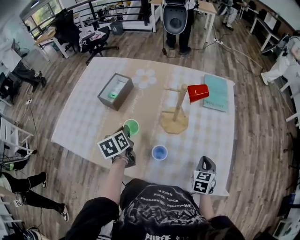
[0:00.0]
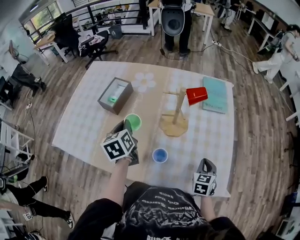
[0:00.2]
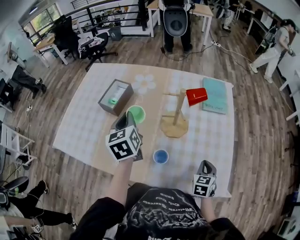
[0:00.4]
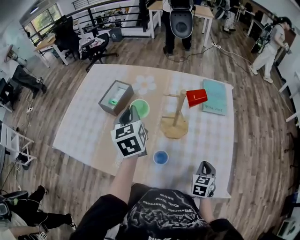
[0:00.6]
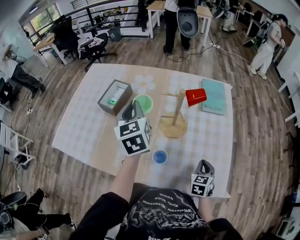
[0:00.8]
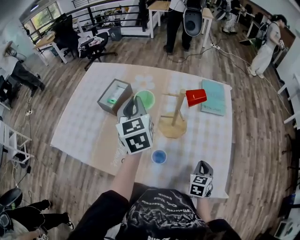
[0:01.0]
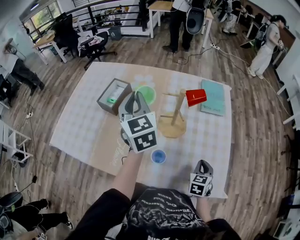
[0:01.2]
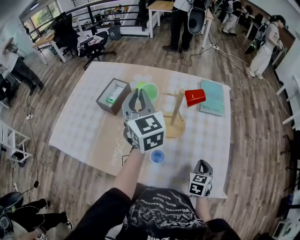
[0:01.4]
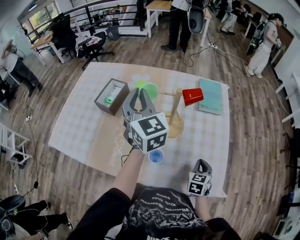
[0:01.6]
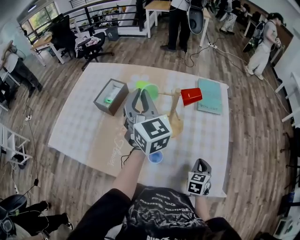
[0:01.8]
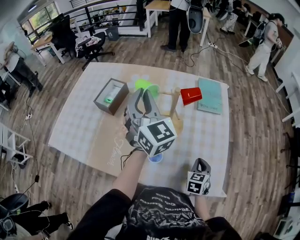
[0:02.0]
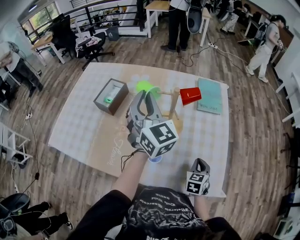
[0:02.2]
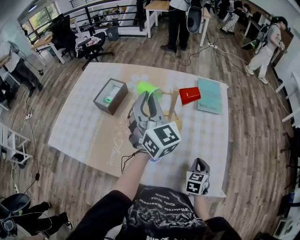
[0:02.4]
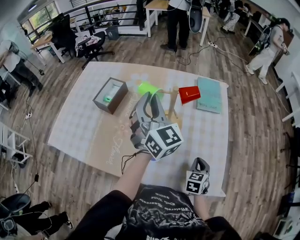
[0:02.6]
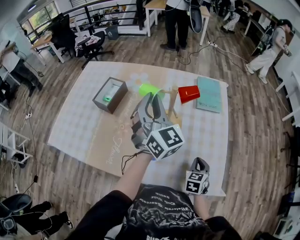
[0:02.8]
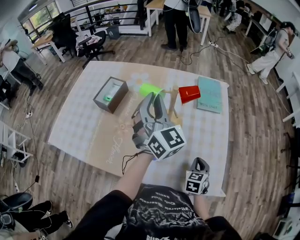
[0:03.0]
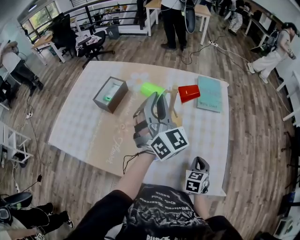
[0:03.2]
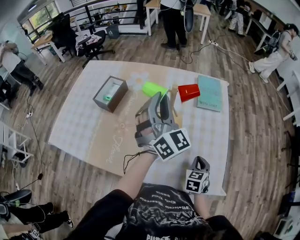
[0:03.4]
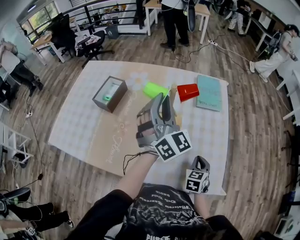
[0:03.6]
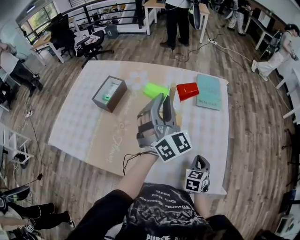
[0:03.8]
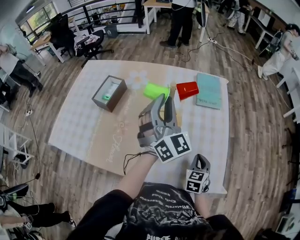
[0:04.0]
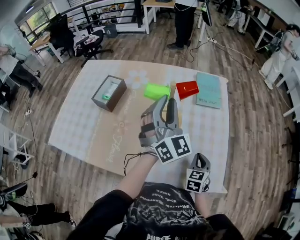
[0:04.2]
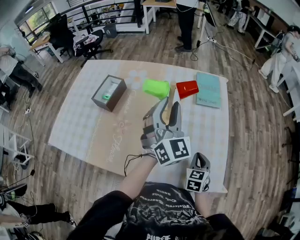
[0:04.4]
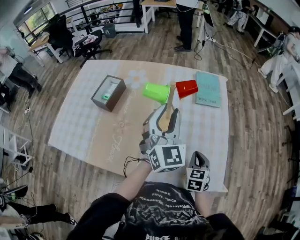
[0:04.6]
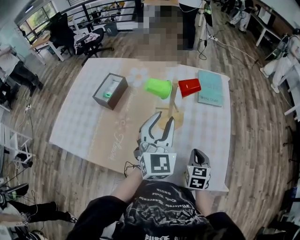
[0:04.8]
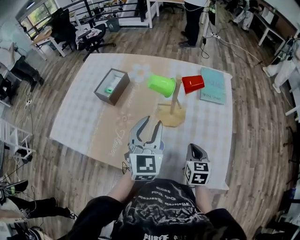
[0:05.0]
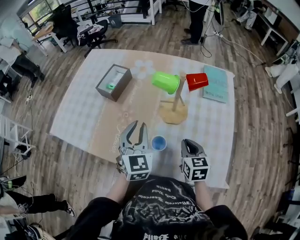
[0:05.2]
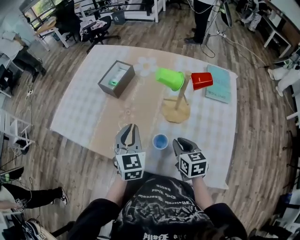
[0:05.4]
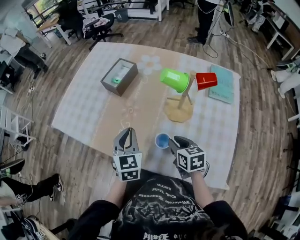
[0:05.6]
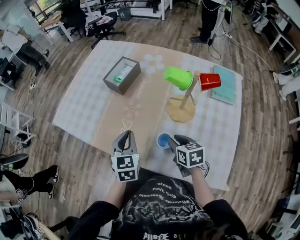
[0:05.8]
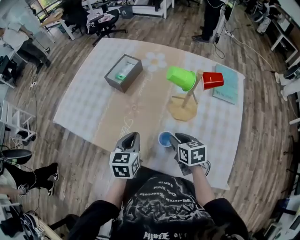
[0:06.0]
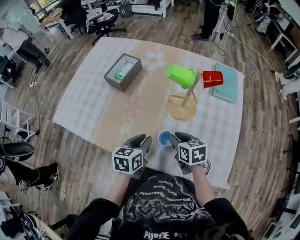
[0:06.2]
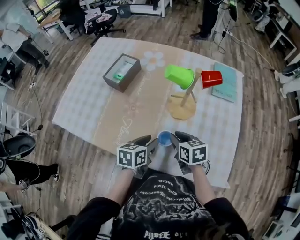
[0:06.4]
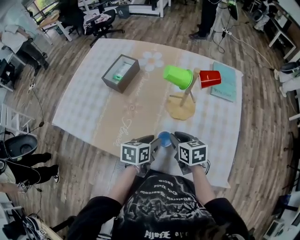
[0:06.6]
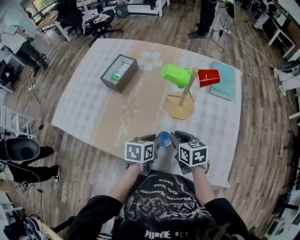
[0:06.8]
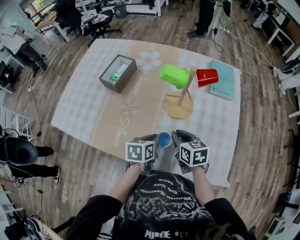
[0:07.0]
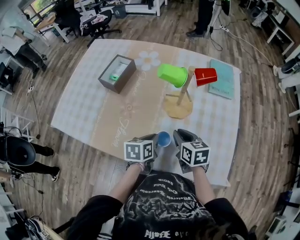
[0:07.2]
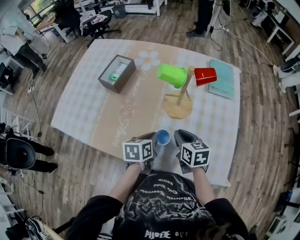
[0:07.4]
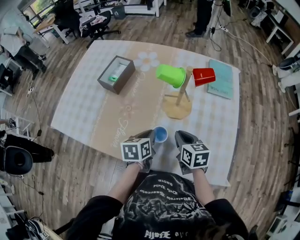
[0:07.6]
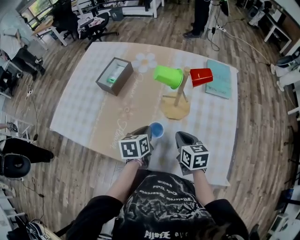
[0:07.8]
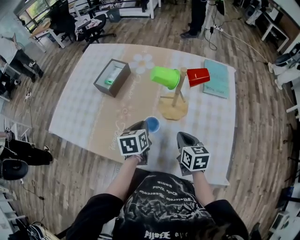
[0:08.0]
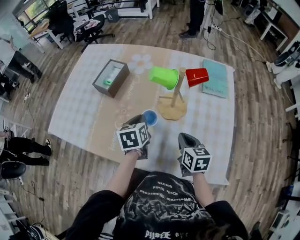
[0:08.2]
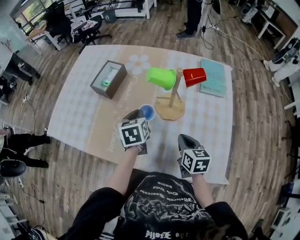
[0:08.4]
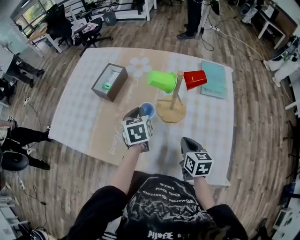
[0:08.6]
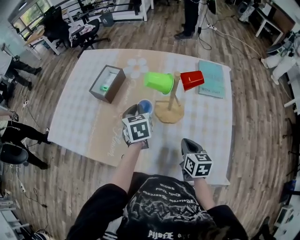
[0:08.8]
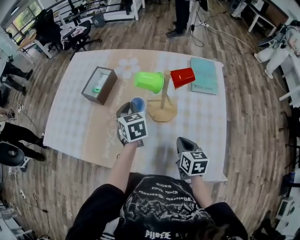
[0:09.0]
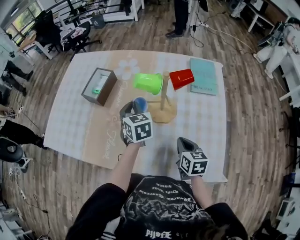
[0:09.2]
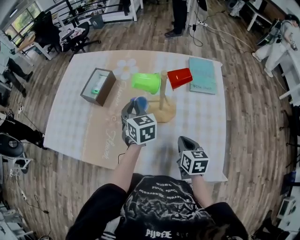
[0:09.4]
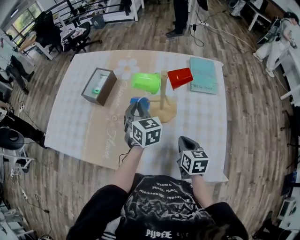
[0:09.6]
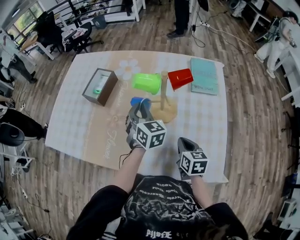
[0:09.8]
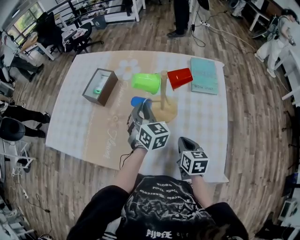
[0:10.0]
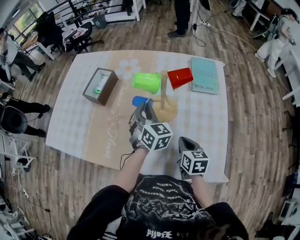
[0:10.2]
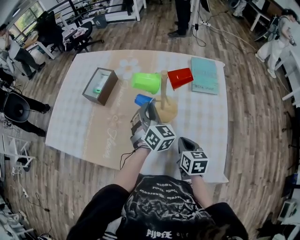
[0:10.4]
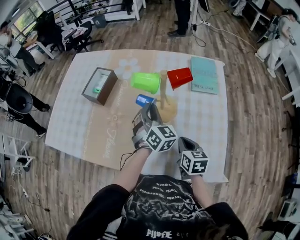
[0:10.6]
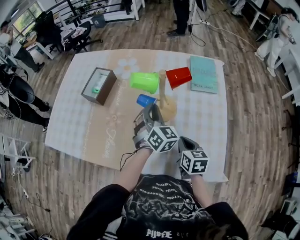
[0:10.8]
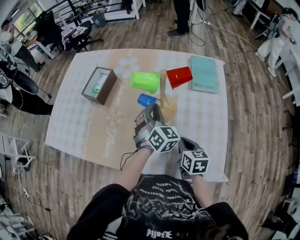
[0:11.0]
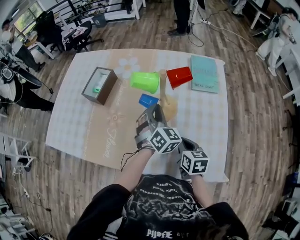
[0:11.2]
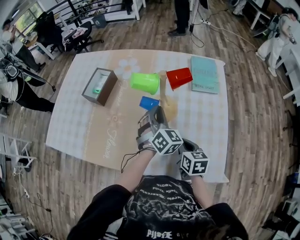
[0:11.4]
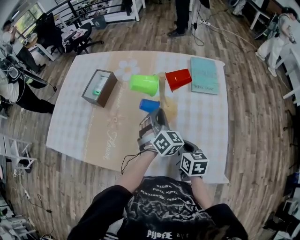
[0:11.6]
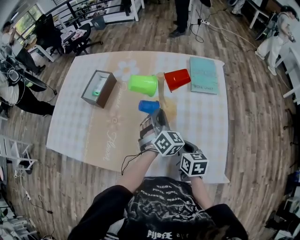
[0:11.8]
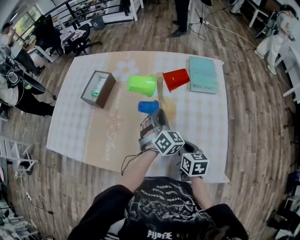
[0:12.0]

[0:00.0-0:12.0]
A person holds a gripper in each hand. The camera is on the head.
0:00.0 to 0:01.6: The left gripper travels upward and to the right by approximately 25 cm, and points its fingers approximately 30 degrees further upward.
0:01.6 to 0:03.0: The left gripper shifts approximately 5 cm to the right.
0:03.0 to 0:04.4: The left gripper shifts roughly 5 cm to the right, and opens up.
0:04.4 to 0:06.0: The left gripper changes place by approximately 30 cm, tilts its fingers roughly 30 degrees downward, and closes its fingers. Meanwhile the right gripper changes place by about 20 cm, turns by some 40 degrees, and opens.
0:06.0 to 0:07.6: The left gripper shifts approximately 10 cm to the right, changes its angle by some 20 degrees, and opens, then closes again.
0:07.6 to 0:09.0: The left gripper goes about 15 cm forward and upward, and rotates roughly 40 degrees. The right gripper heads to the right, covering about 5 cm.
0:09.0 to 0:10.4: The left gripper is displaced to the right by about 10 cm, and turns by some 30 degrees.
0:10.4 to 0:12.0: The left gripper travels to the right by about 5 cm.

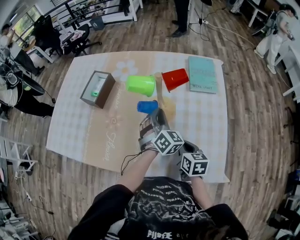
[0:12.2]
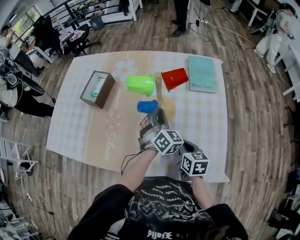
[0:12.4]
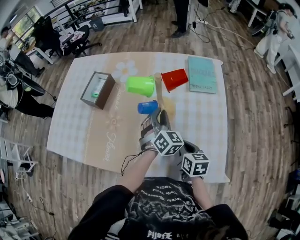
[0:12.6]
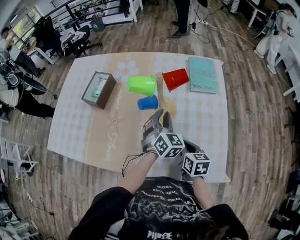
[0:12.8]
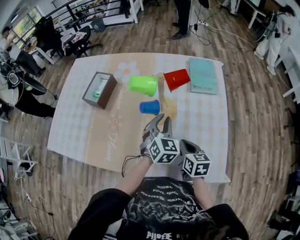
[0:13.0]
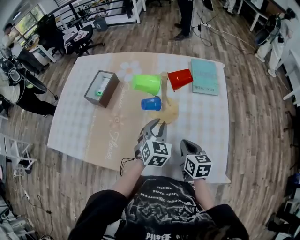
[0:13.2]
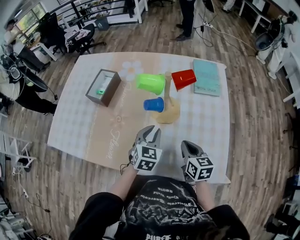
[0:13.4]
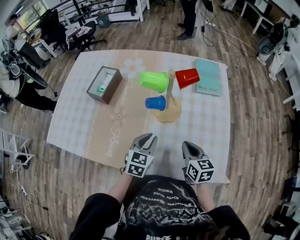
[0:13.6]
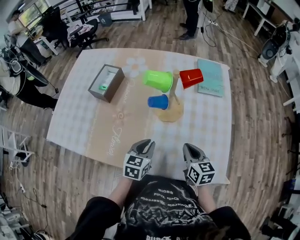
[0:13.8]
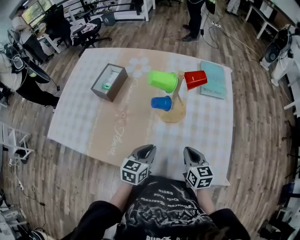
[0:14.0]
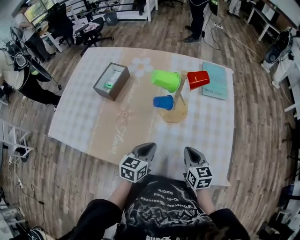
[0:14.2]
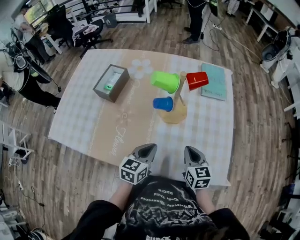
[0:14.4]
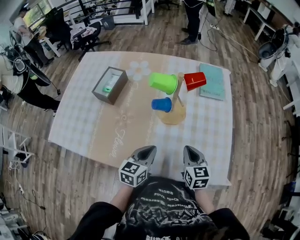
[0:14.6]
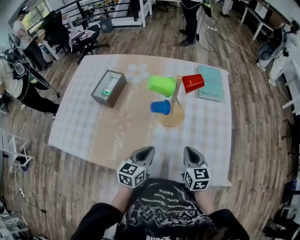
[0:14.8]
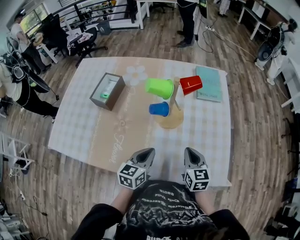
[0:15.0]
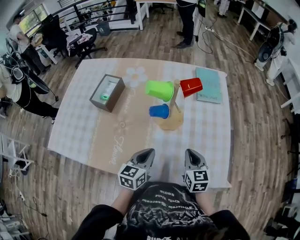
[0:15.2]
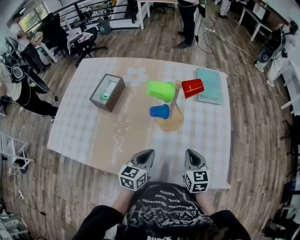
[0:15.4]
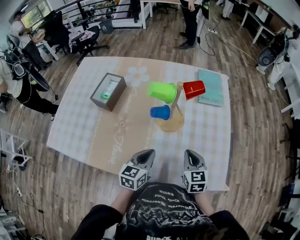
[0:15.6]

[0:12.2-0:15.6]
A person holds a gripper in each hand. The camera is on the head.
0:12.2 to 0:13.8: The left gripper shifts some 20 cm backward and to the left, and swivels some 50 degrees.
0:13.8 to 0:15.6: The grippers stay close to where they were, moving slightly.

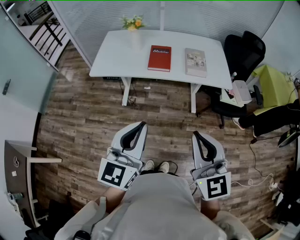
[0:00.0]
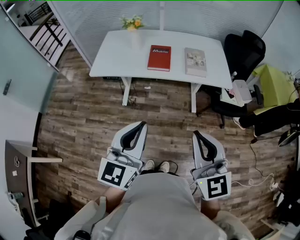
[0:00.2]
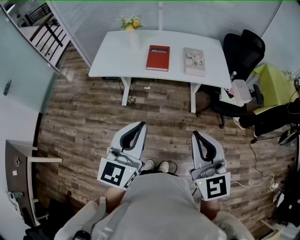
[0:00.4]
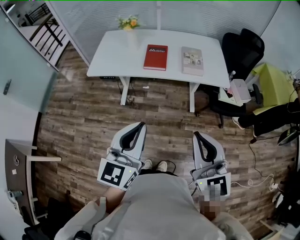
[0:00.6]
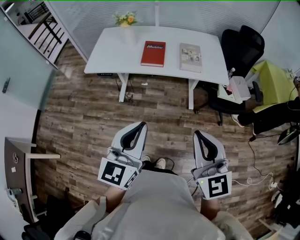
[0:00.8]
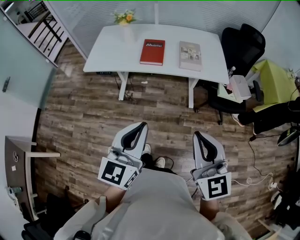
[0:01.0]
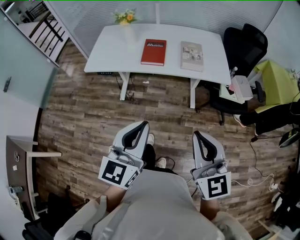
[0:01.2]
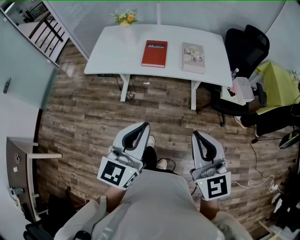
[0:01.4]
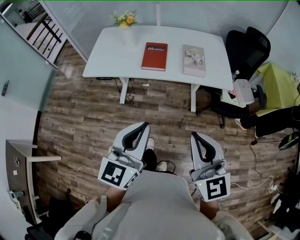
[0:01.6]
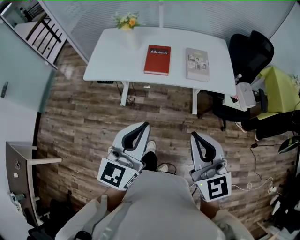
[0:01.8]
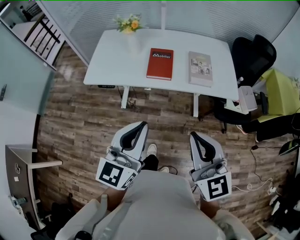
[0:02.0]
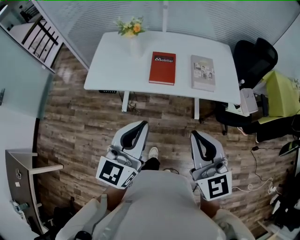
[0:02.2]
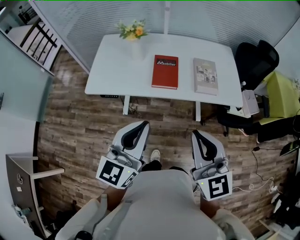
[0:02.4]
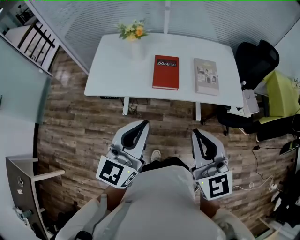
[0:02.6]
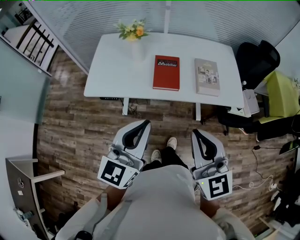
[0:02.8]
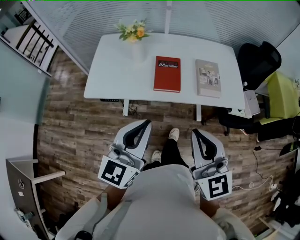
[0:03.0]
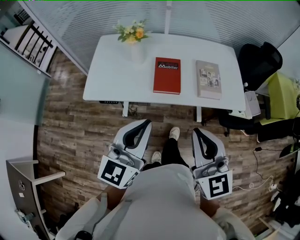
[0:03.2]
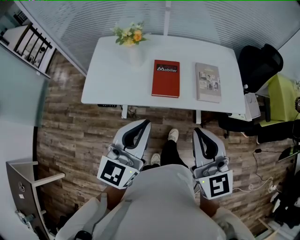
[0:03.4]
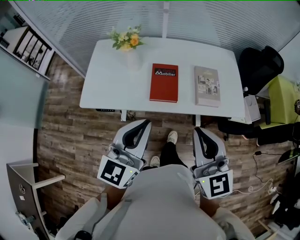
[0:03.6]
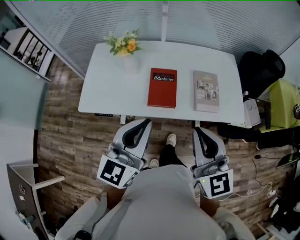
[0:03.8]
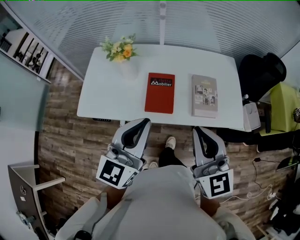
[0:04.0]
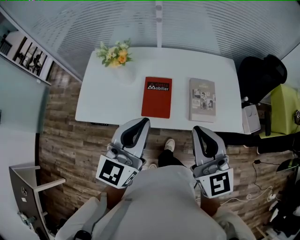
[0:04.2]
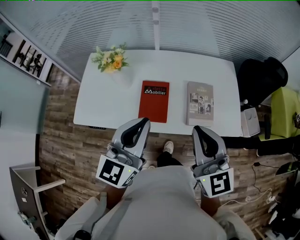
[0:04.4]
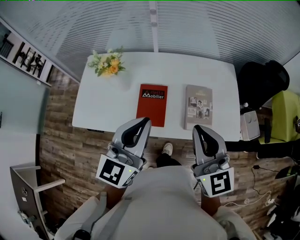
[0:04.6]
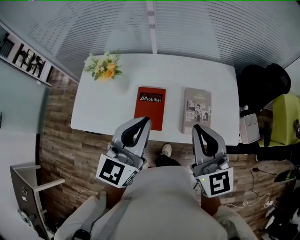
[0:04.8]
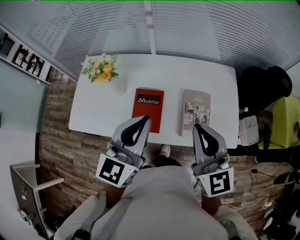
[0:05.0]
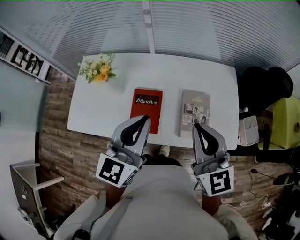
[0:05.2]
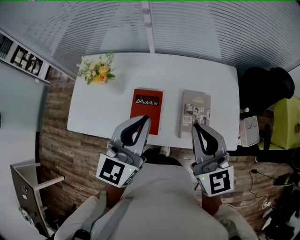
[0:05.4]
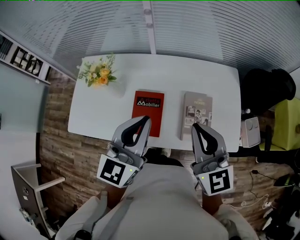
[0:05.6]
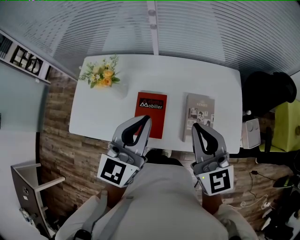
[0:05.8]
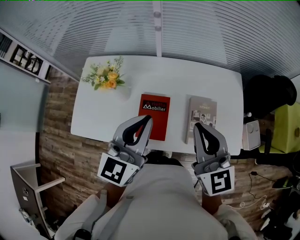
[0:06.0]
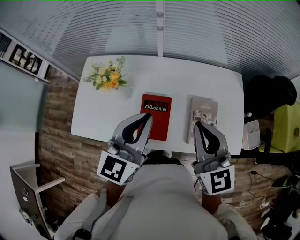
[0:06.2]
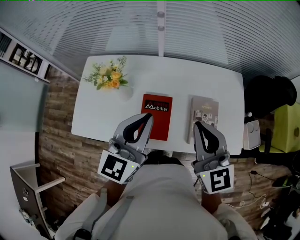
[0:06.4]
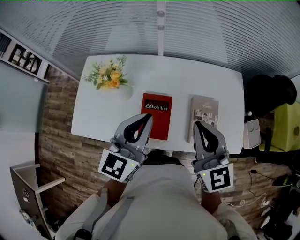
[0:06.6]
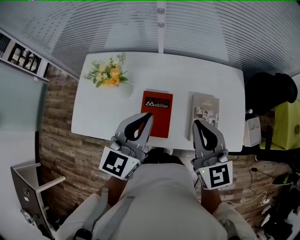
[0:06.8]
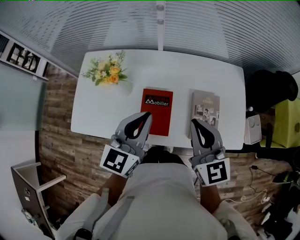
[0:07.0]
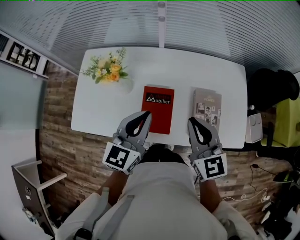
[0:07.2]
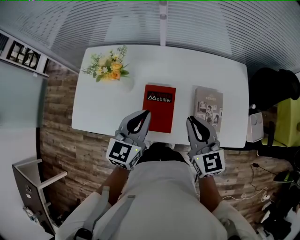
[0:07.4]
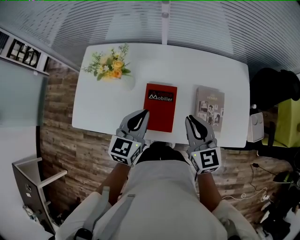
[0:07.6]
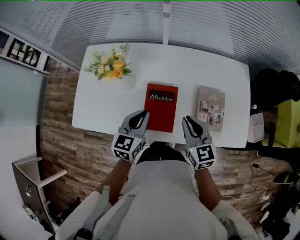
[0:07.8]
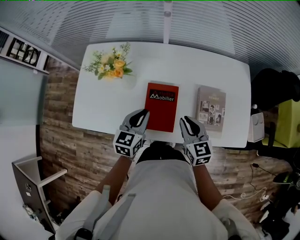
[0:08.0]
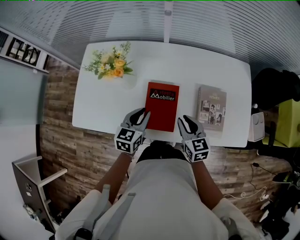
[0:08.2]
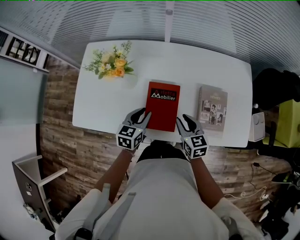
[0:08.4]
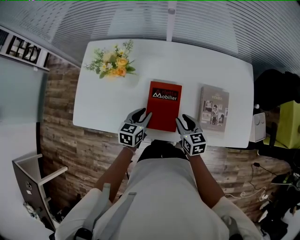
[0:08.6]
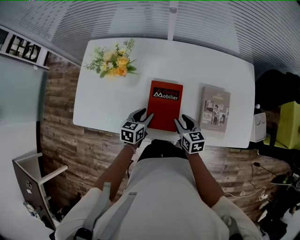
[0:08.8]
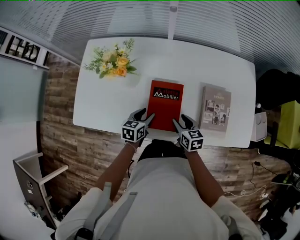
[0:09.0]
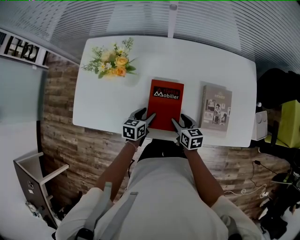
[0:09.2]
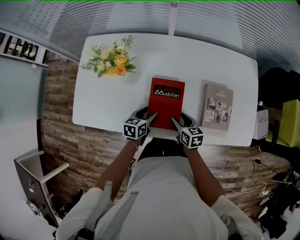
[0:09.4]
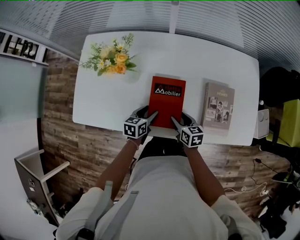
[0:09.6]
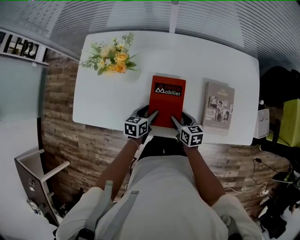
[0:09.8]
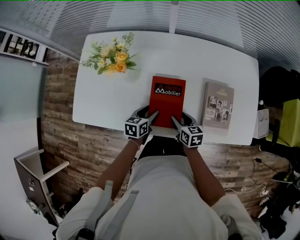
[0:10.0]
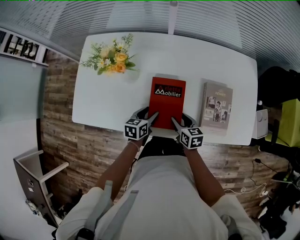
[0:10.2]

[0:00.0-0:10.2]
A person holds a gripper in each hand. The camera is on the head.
0:00.0 to 0:01.4: Both grippers move to the right, some 5 cm.
0:01.4 to 0:03.0: Both grippers travel together forward and to the left, some 25 cm.
0:03.0 to 0:04.4: Both grippers travel together forward and to the right, some 25 cm.
0:04.4 to 0:05.8: Both grippers travel together forward, some 15 cm.
0:05.8 to 0:07.2: Both grippers move downward, some 10 cm.
0:07.2 to 0:08.8: The grippers both shift downward by about 30 cm. The left gripper rotates about 30 degrees, and opens its fingers, while the right gripper changes its angle by roughly 30 degrees, and opens its fingers.
0:08.8 to 0:10.2: The grippers move only a little.
